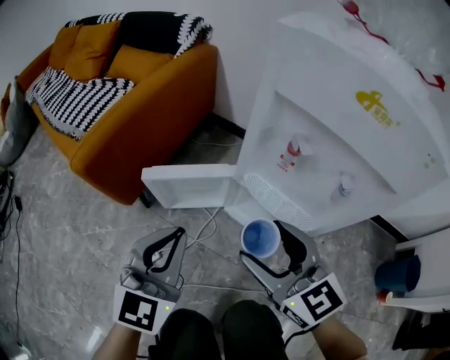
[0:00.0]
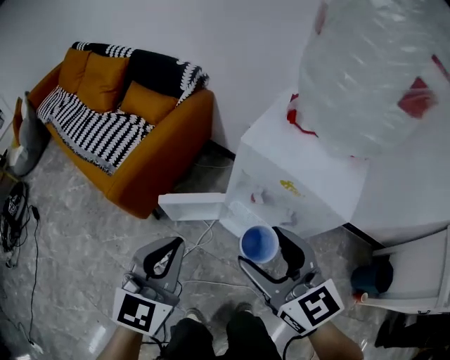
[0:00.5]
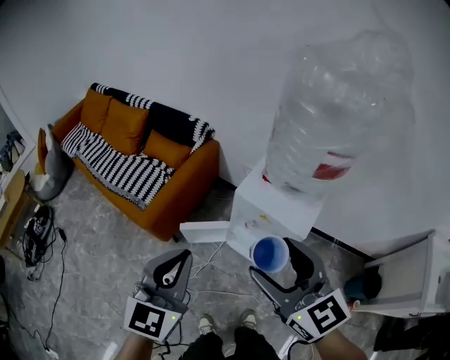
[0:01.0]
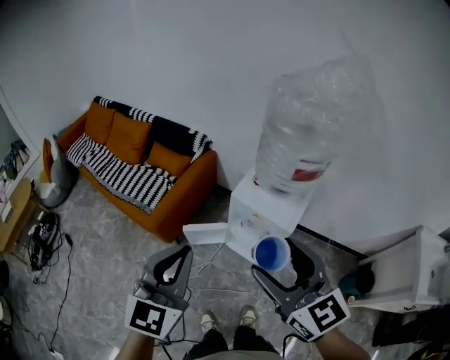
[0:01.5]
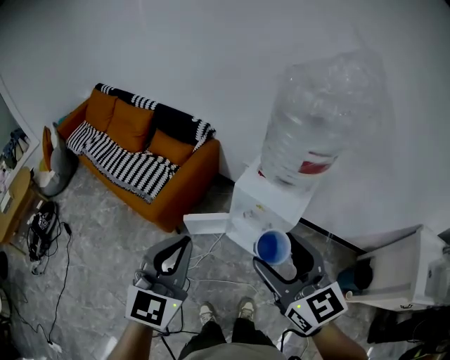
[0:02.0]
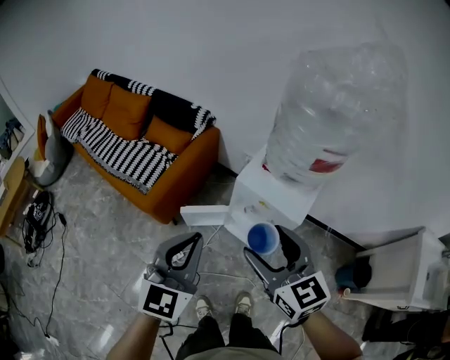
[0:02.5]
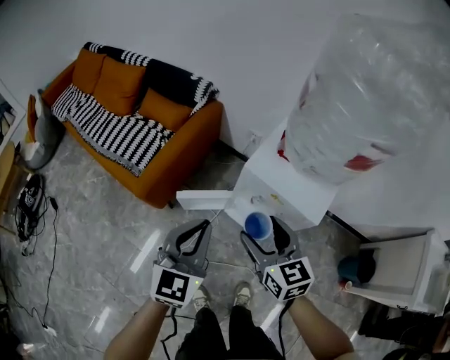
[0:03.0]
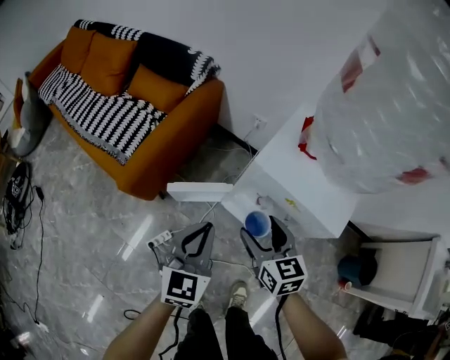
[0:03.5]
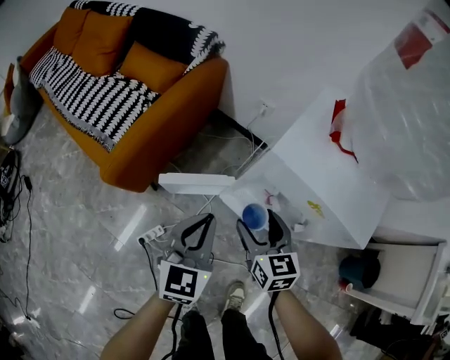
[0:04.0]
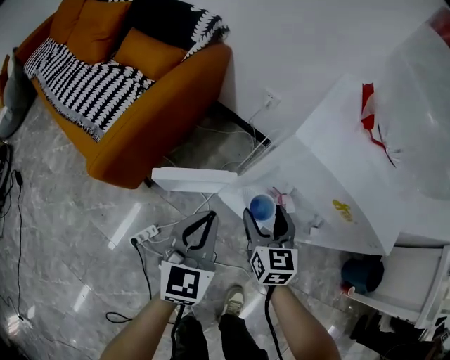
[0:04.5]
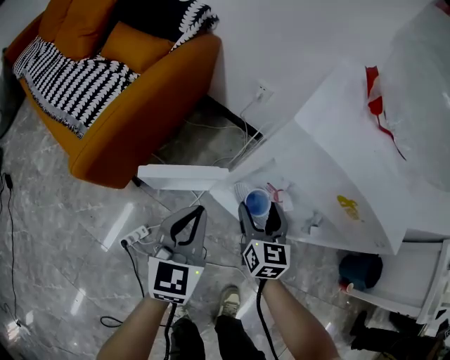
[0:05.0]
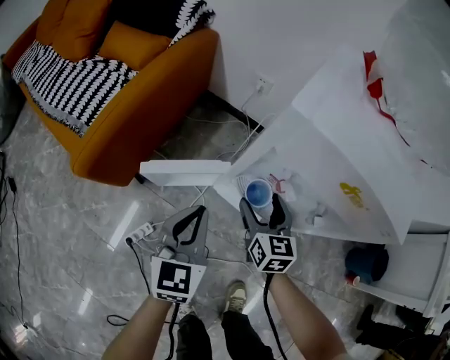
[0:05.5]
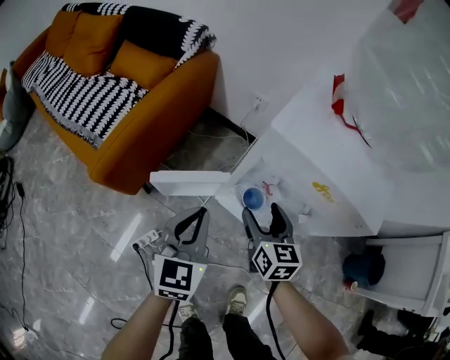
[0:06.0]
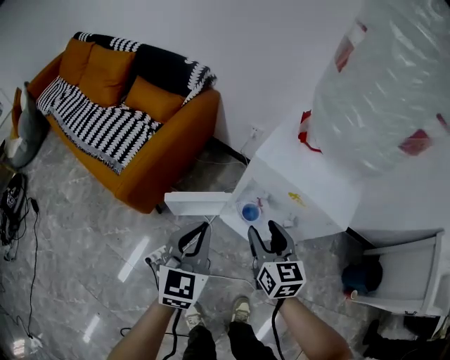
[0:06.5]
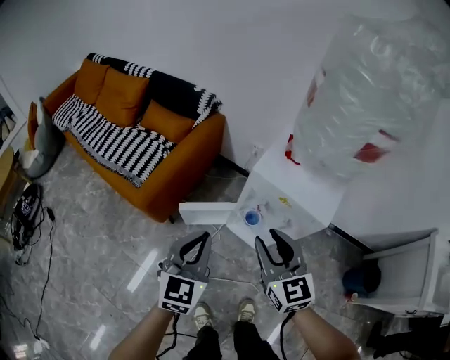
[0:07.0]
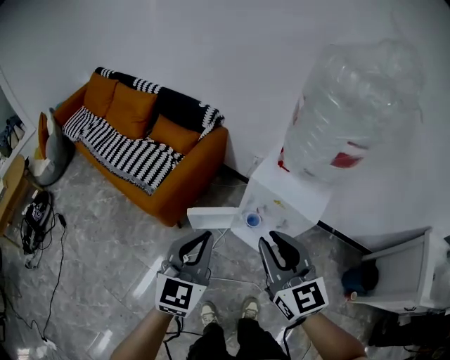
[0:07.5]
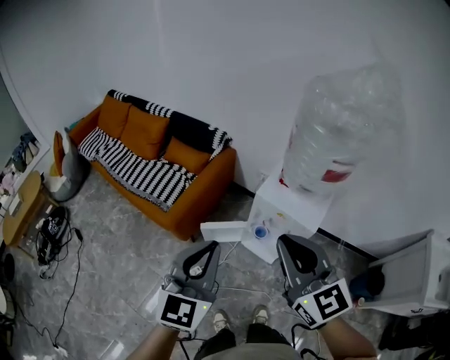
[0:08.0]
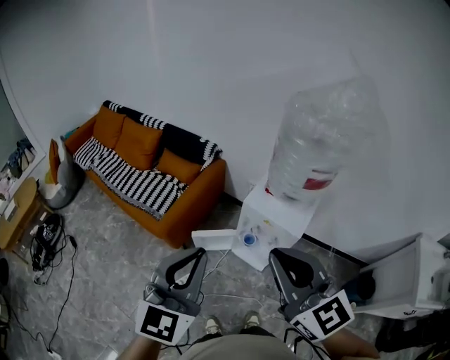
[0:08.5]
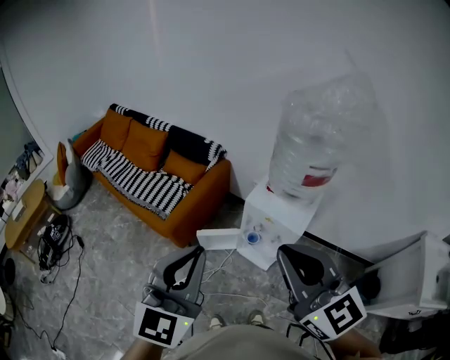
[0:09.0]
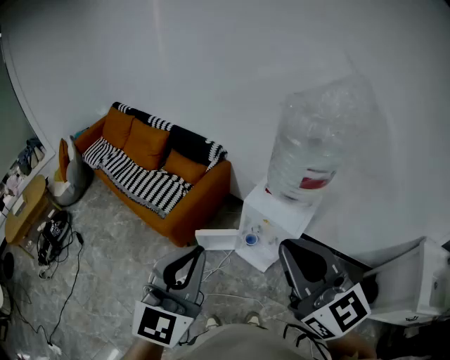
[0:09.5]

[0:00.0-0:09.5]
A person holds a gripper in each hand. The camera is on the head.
0:00.0 to 0:02.0: The grippers both shift upward by some 60 cm.
0:02.0 to 0:04.0: Both grippers move downward and forward, about 50 cm. The right gripper rotates some 20 degrees.
0:04.0 to 0:05.5: The grippers both shift downward by some 10 cm.
0:05.5 to 0:07.5: The two grippers go about 50 cm upward. The right gripper swivels about 30 degrees, and closes up.
0:07.5 to 0:09.5: The left gripper shifts some 25 cm upward and backward. Meanwhile the right gripper moves upward, about 25 cm.

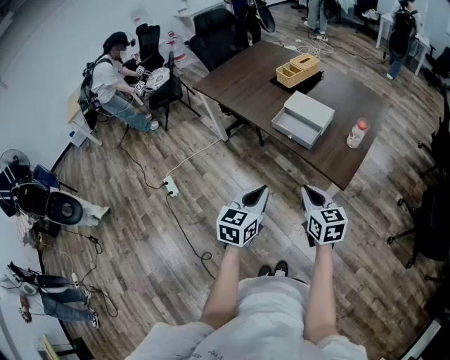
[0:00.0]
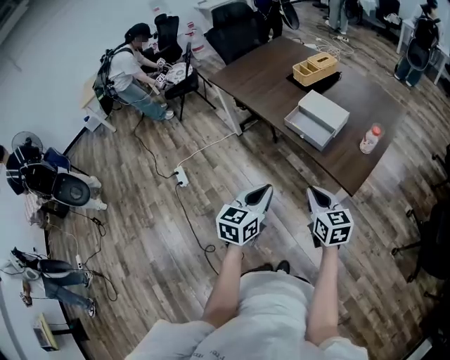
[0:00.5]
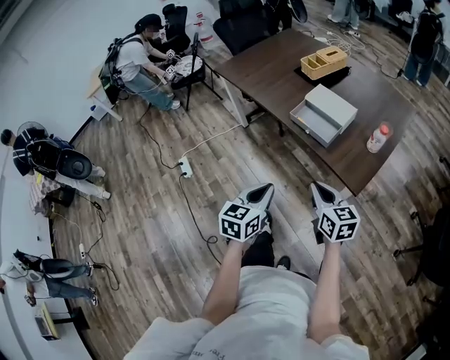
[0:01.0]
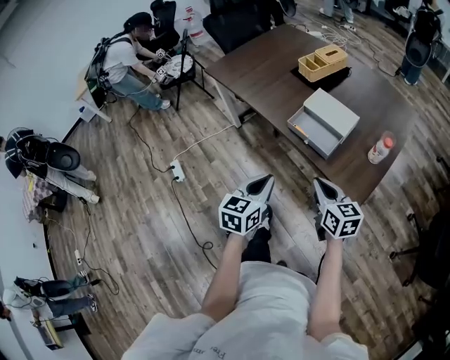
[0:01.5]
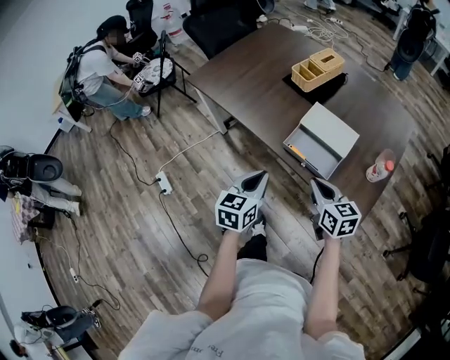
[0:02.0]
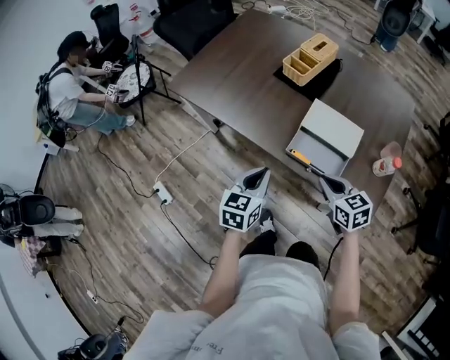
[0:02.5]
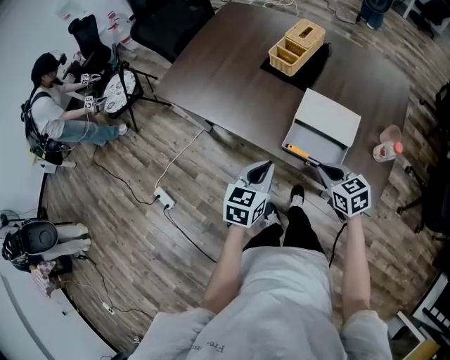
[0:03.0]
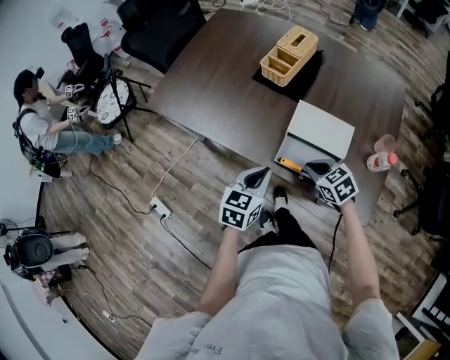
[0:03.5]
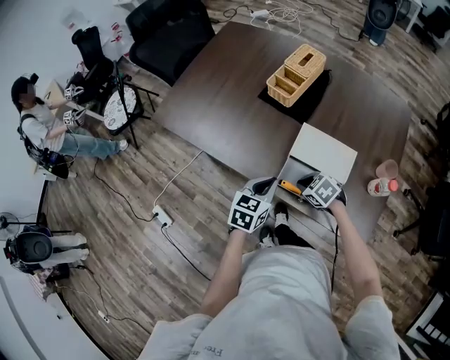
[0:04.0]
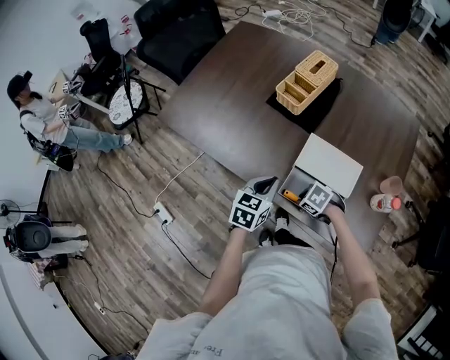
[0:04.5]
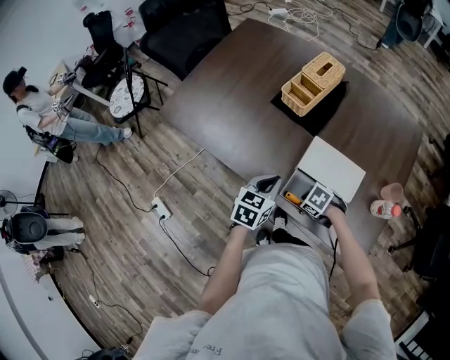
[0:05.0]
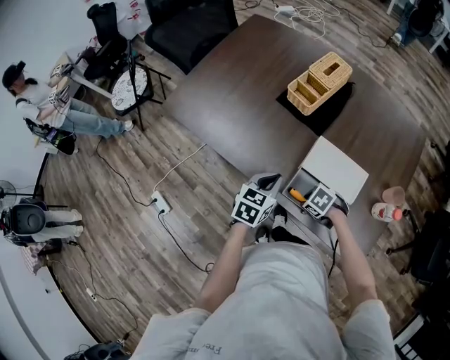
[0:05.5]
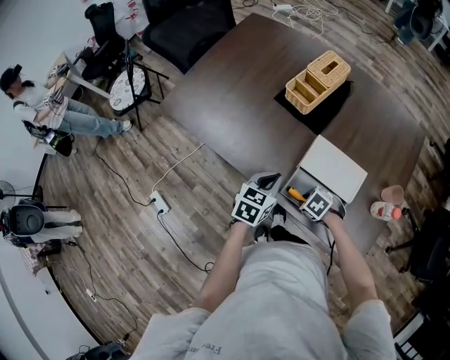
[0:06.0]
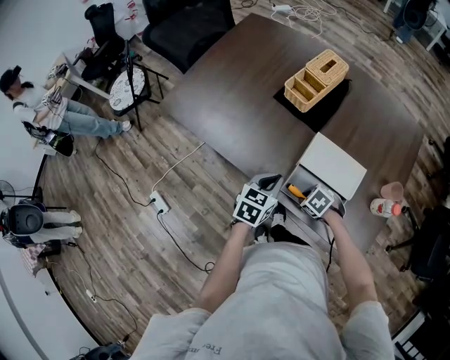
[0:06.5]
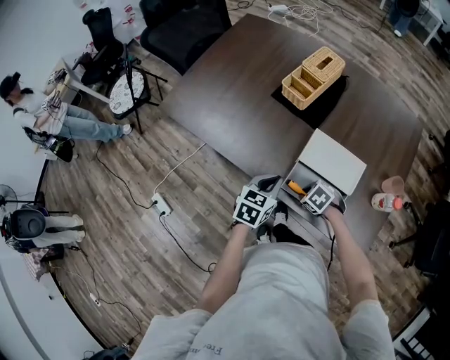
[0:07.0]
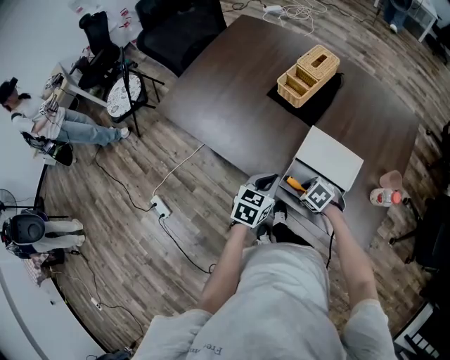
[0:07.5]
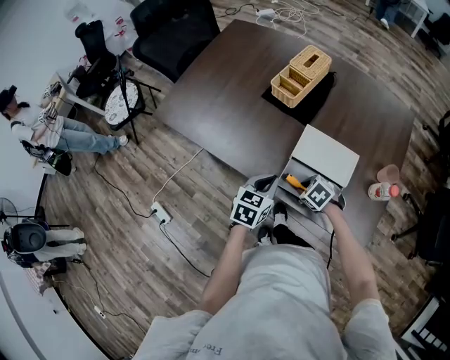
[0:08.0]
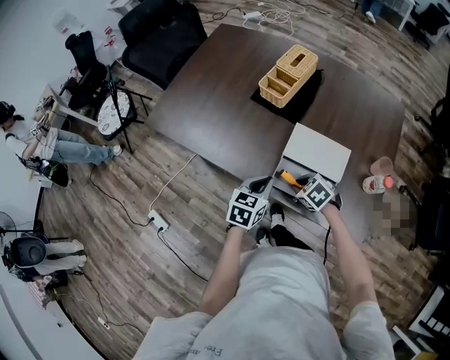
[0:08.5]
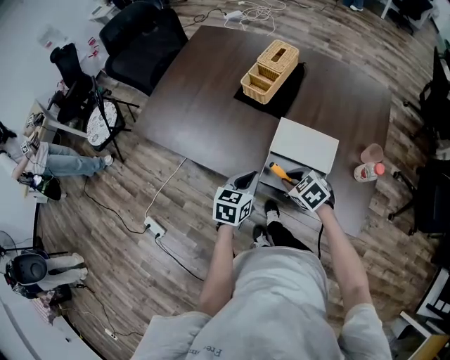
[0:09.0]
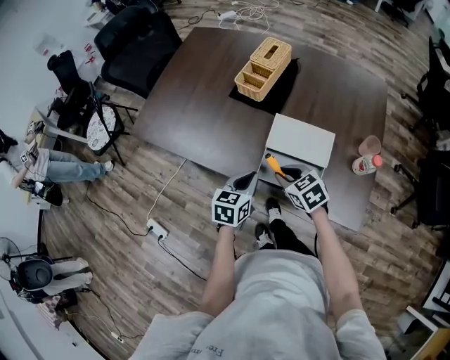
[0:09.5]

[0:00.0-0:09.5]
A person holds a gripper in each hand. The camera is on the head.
0:00.0 to 0:02.0: Both grippers move forward, approximately 25 cm.
0:02.0 to 0:04.0: The grippers both shift forward and downward by roughly 20 cm. The right gripper tips its fingers downward by roughly 40 degrees. Meanwhile the left gripper changes its angle by about 20 degrees.
0:04.0 to 0:05.5: The right gripper shifts about 5 cm downward, swivels about 20 degrees, and opens. Meanwhile the left gripper moves about 5 cm.
0:05.5 to 0:07.5: The grippers make only small movements.
0:07.5 to 0:09.5: The right gripper goes roughly 10 cm upward, and changes its angle by approximately 30 degrees.

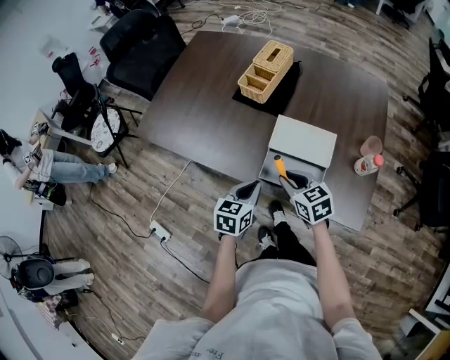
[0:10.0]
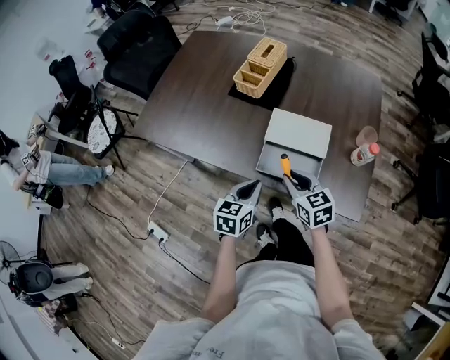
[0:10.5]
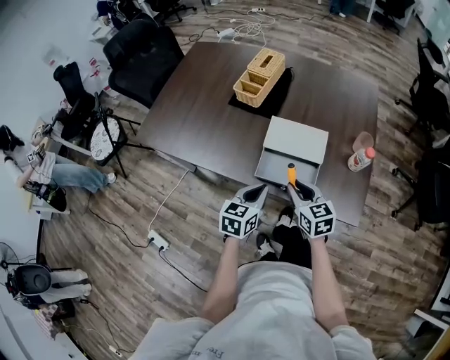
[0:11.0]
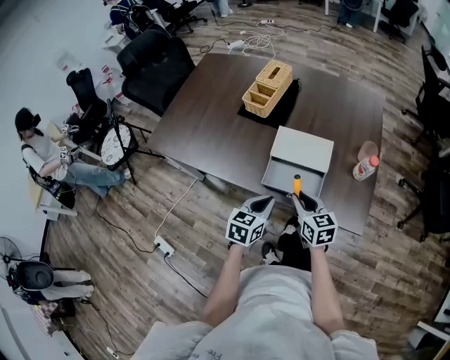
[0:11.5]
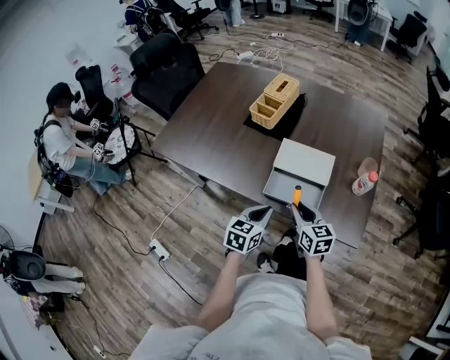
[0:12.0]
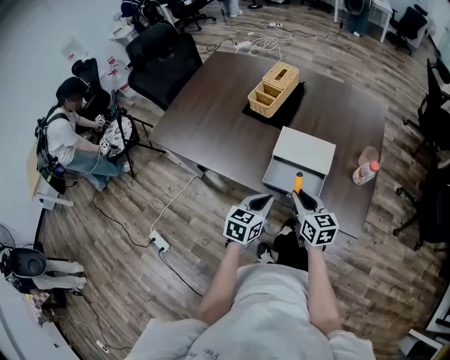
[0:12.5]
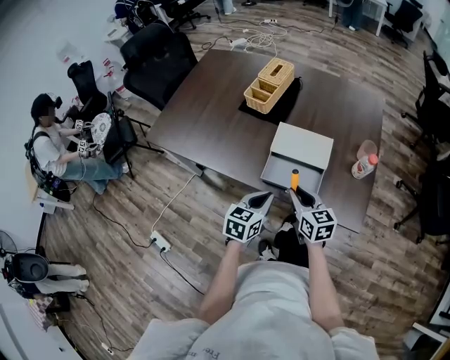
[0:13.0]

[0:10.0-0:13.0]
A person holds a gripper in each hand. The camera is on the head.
0:10.0 to 0:11.5: The left gripper shifts by approximately 5 cm; the right gripper moves to the right, about 5 cm.
0:11.5 to 0:13.0: The grippers move only a little.

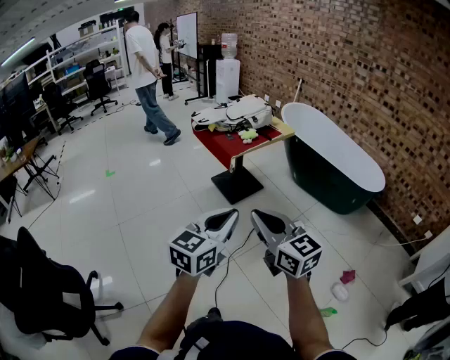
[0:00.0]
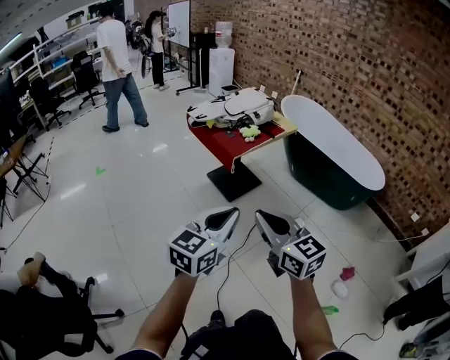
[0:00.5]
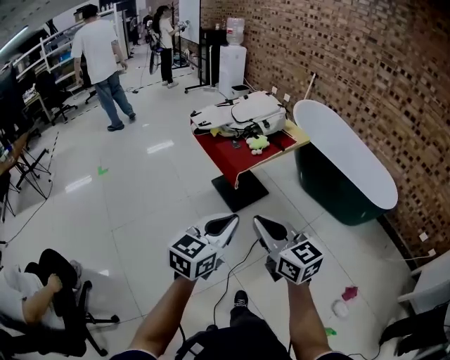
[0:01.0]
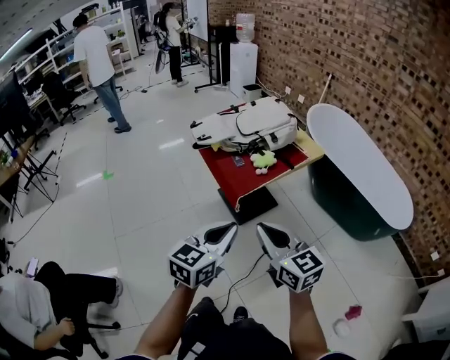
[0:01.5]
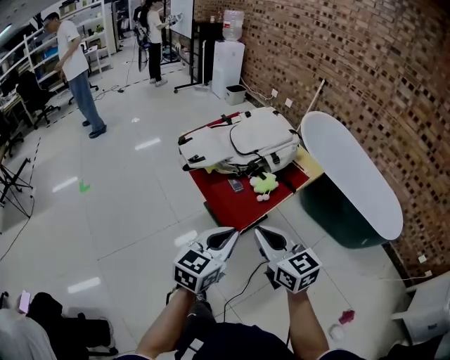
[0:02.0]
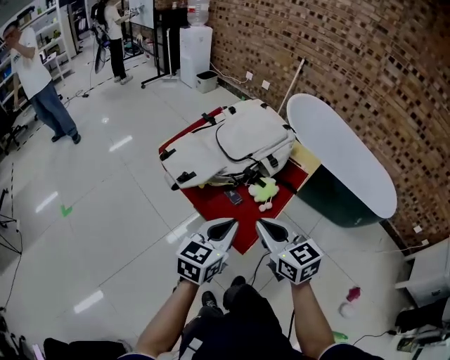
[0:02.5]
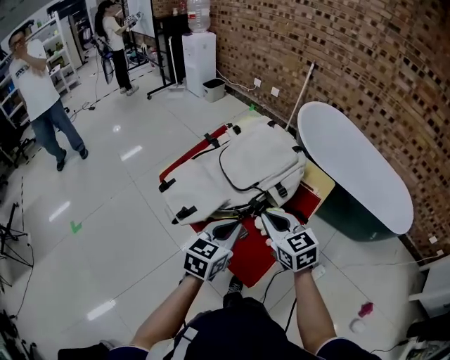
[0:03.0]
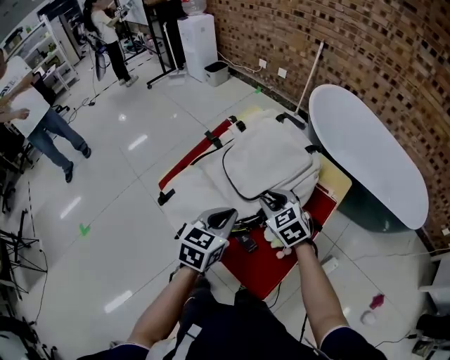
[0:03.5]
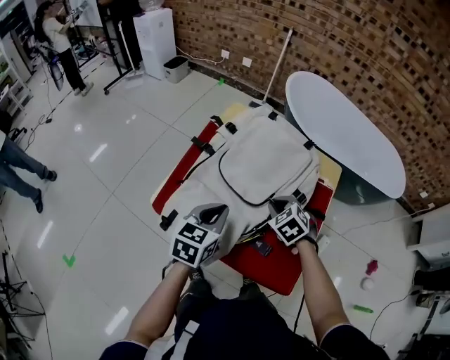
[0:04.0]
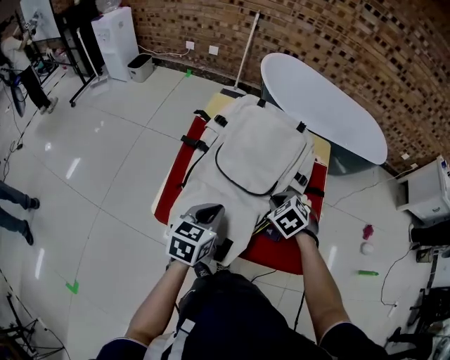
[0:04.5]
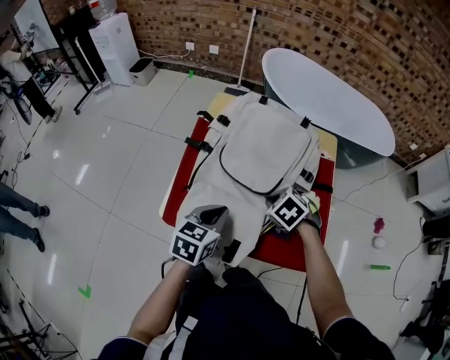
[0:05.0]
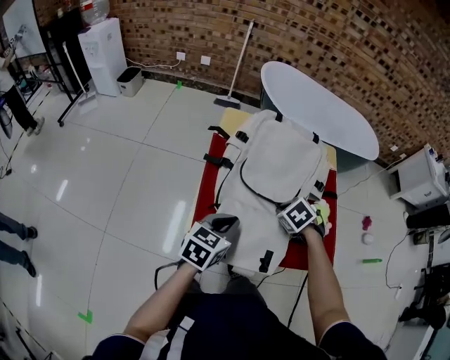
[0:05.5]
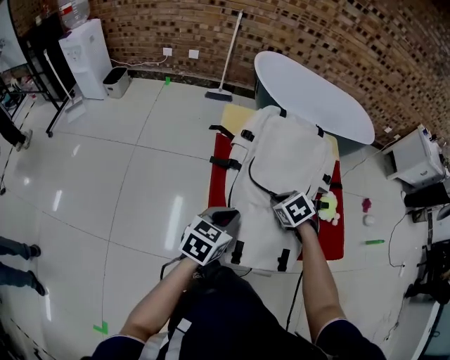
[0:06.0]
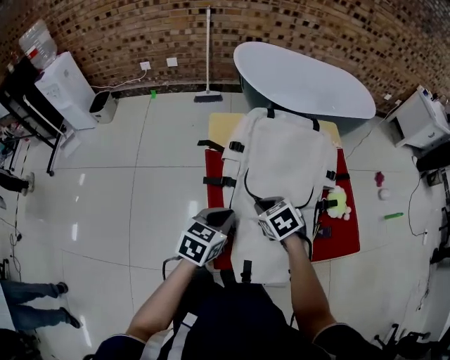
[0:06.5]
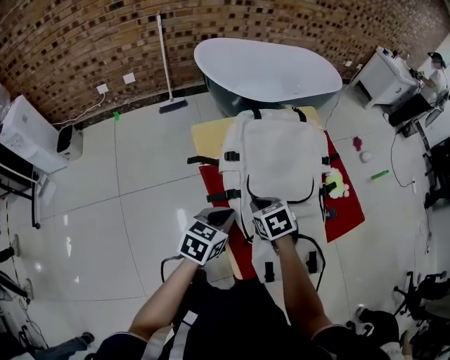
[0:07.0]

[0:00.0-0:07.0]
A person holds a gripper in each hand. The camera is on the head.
0:00.0 to 0:02.0: The two grippers travel together, forward, about 50 cm.
0:02.0 to 0:03.5: Both grippers travel together forward, approximately 35 cm. The right gripper turns by approximately 30 degrees, and opens its fingers.
0:03.5 to 0:05.0: The left gripper moves approximately 15 cm, and changes its angle by some 30 degrees; the right gripper moves approximately 10 cm, tips its fingers downward by approximately 30 degrees, and closes its fingers.
0:05.0 to 0:07.0: The right gripper moves roughly 20 cm, and twists roughly 50 degrees clockwise, seen from behind, while the left gripper shifts by roughly 20 cm, and rotates some 40 degrees.
